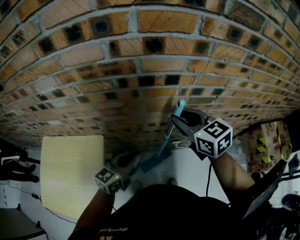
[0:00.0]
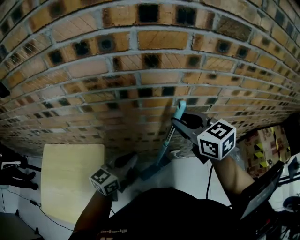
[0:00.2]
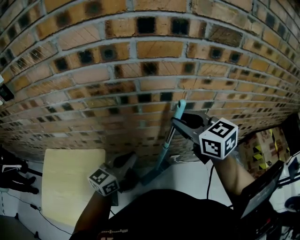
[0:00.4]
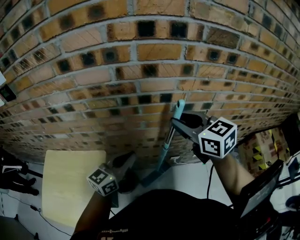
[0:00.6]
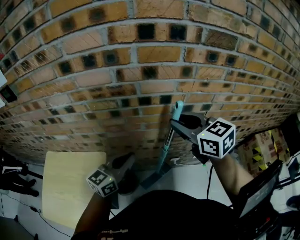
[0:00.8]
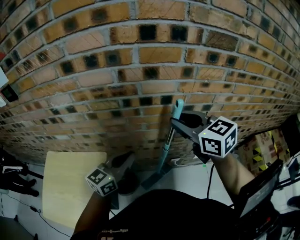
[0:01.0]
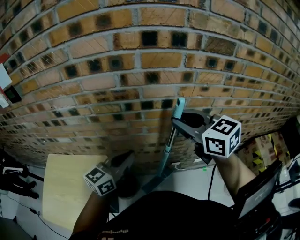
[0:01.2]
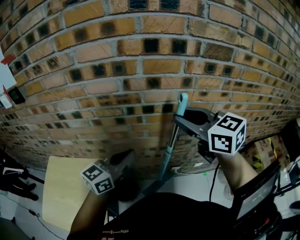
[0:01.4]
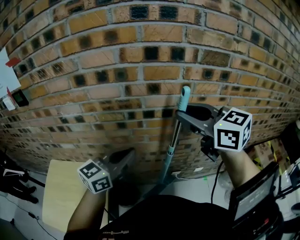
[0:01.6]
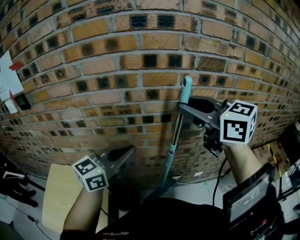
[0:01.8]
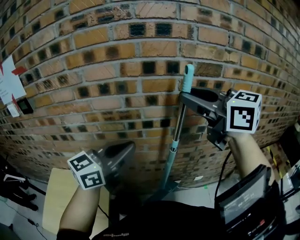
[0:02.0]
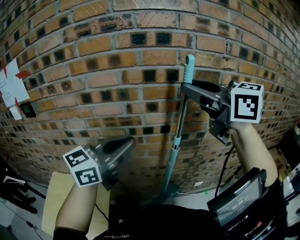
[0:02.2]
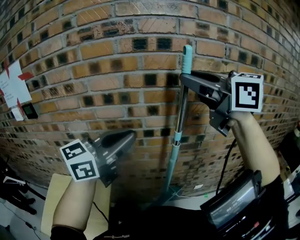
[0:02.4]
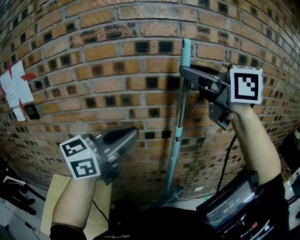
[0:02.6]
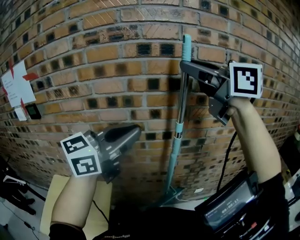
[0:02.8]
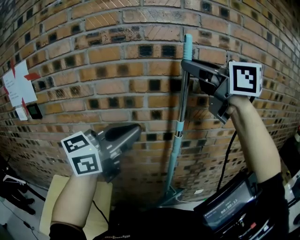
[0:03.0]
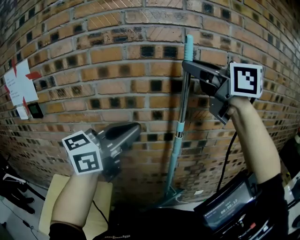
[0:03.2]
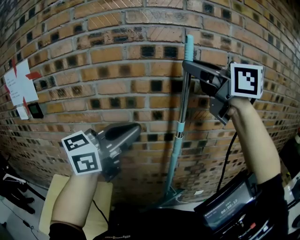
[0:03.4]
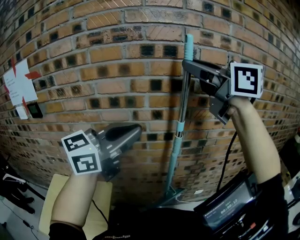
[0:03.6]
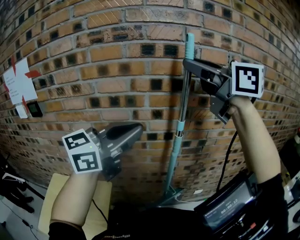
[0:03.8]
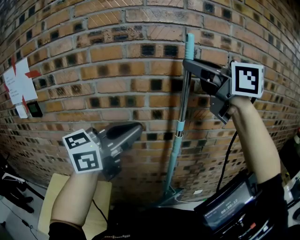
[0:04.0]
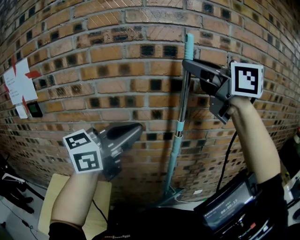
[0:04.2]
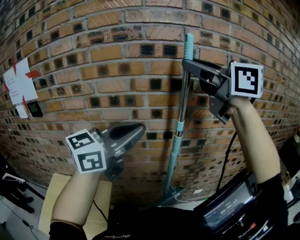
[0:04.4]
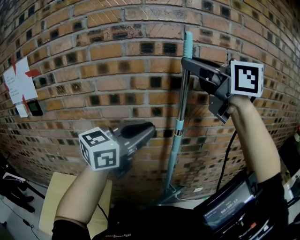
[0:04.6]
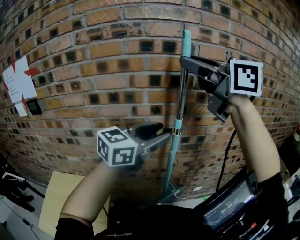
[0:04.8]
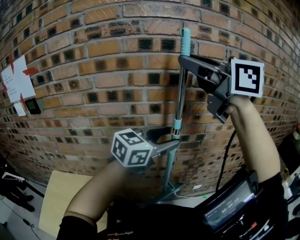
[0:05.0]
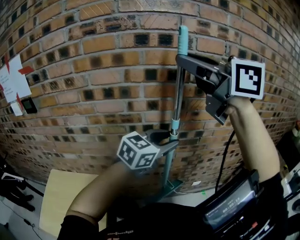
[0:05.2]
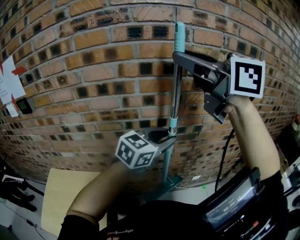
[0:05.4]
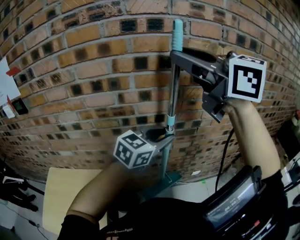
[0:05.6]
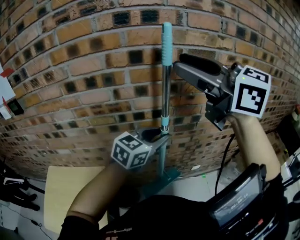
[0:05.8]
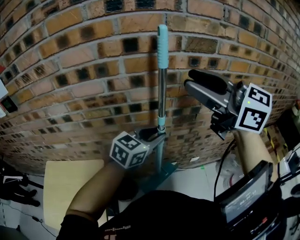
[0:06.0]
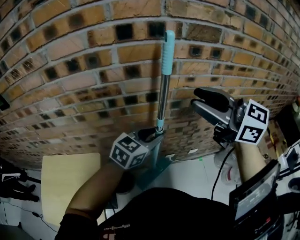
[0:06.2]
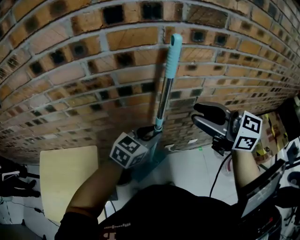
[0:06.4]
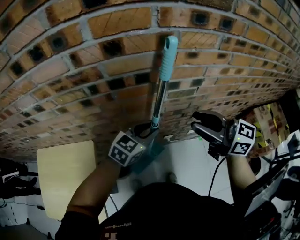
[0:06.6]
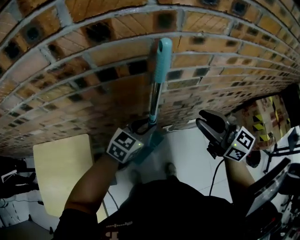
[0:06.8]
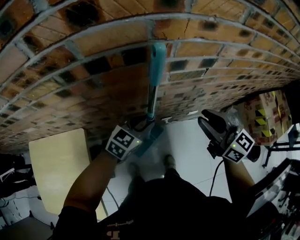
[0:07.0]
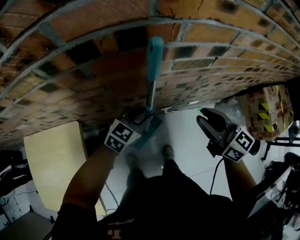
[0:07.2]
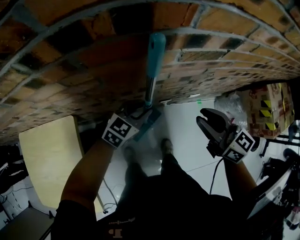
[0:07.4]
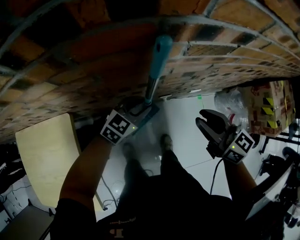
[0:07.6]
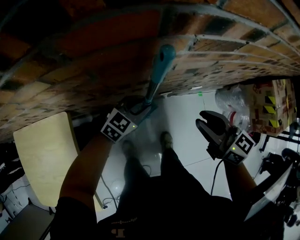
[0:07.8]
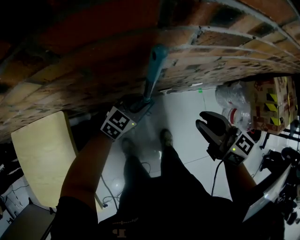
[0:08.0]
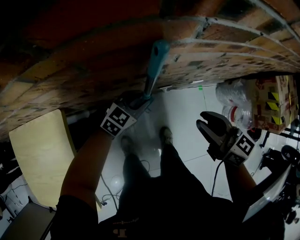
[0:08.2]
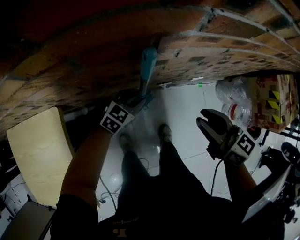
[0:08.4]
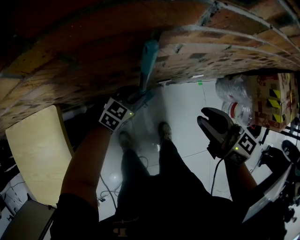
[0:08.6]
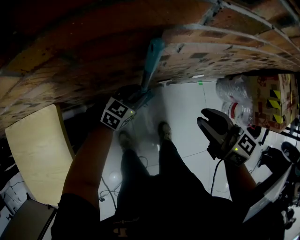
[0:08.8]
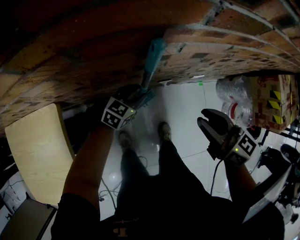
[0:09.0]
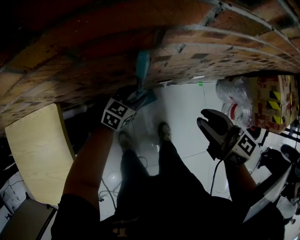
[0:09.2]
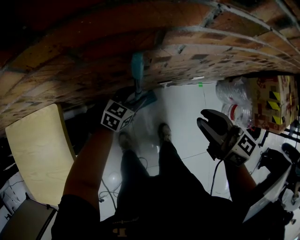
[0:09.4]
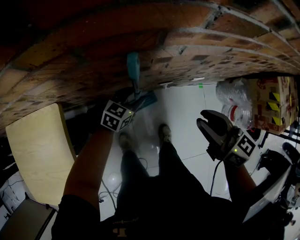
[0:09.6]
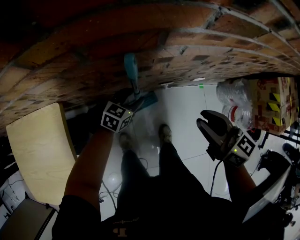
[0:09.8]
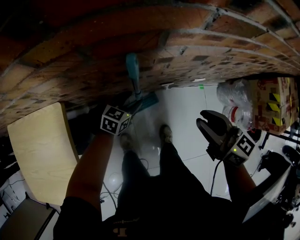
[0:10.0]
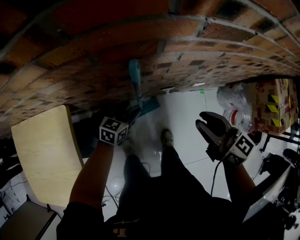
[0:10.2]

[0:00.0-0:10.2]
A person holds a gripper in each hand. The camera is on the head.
0:00.0 to 0:01.4: Both grippers move upward, approximately 15 cm.
0:01.4 to 0:03.0: The grippers both shift upward by roughly 25 cm.
0:03.0 to 0:04.4: Both grippers stay put.
0:04.4 to 0:05.8: The right gripper is displaced downward by some 10 cm. Meanwhile the left gripper moves downward and to the right, roughly 25 cm, turns by approximately 20 degrees, and opens up.
0:05.8 to 0:07.2: The grippers both shift downward by roughly 40 cm. The right gripper rotates some 30 degrees.
0:07.2 to 0:08.8: The left gripper shifts roughly 20 cm downward, while the right gripper is displaced downward by about 10 cm.
0:08.8 to 0:10.2: The left gripper heads to the left, covering roughly 5 cm.

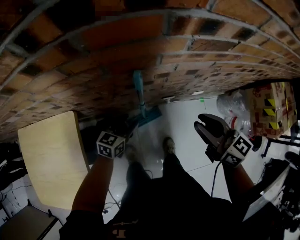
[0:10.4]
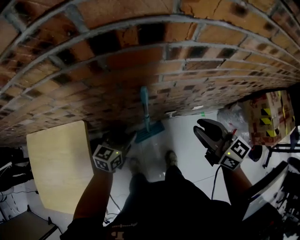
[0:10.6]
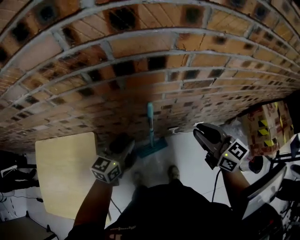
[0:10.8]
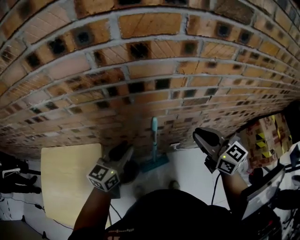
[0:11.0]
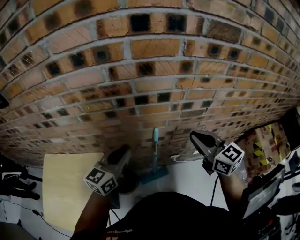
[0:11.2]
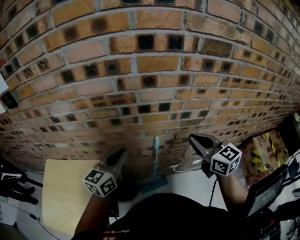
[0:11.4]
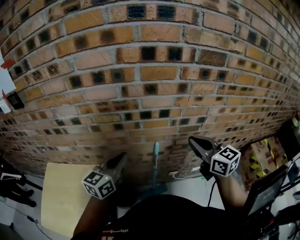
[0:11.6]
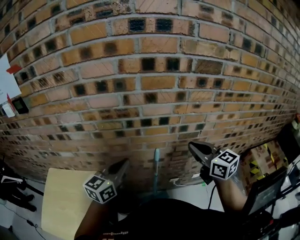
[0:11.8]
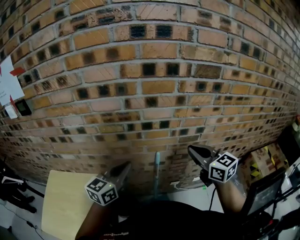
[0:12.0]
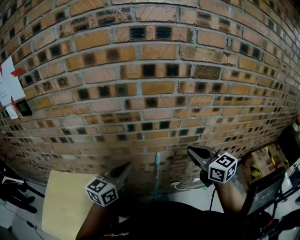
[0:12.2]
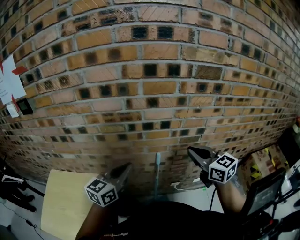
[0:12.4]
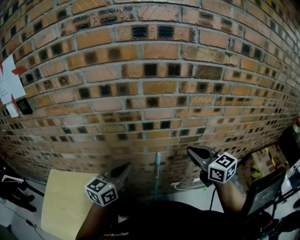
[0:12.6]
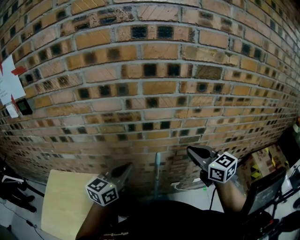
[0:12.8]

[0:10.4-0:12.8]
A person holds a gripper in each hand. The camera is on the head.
0:10.4 to 0:11.6: The right gripper goes approximately 25 cm upward, and closes its fingers. Meanwhile the left gripper shifts some 40 cm upward, swivels roughly 30 degrees, and closes its fingers.
0:11.6 to 0:12.8: The grippers stay close to where they were, moving slightly.

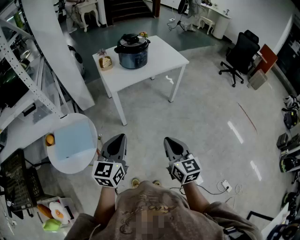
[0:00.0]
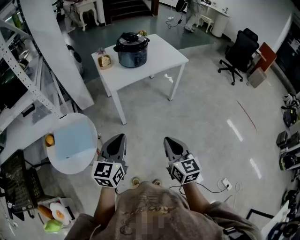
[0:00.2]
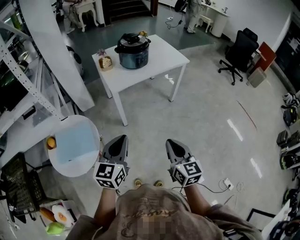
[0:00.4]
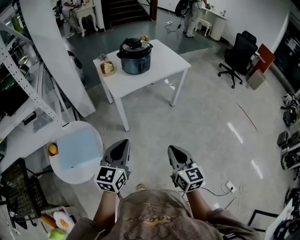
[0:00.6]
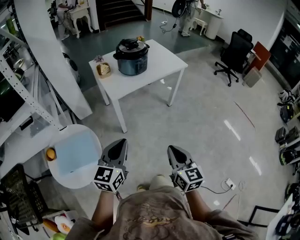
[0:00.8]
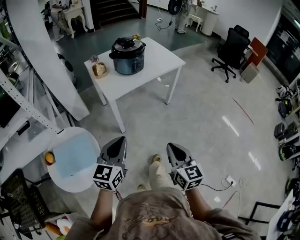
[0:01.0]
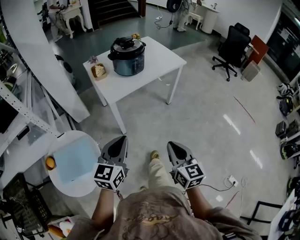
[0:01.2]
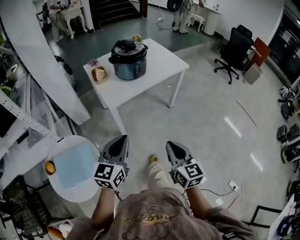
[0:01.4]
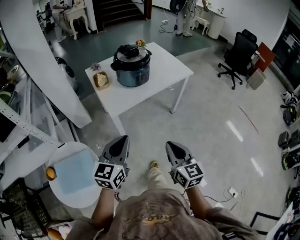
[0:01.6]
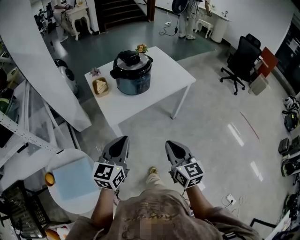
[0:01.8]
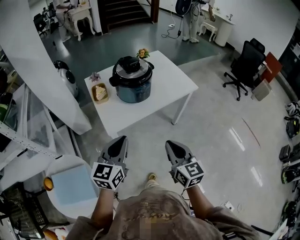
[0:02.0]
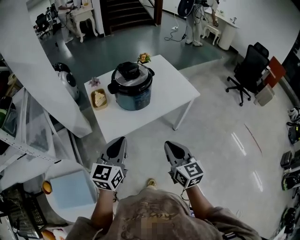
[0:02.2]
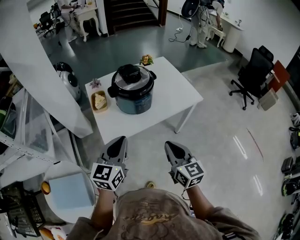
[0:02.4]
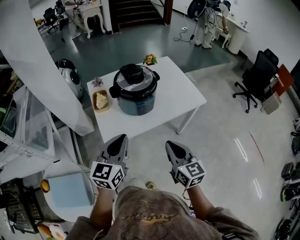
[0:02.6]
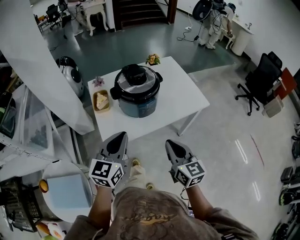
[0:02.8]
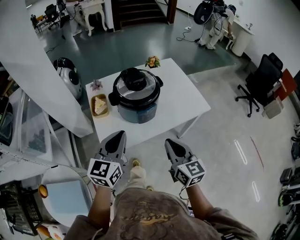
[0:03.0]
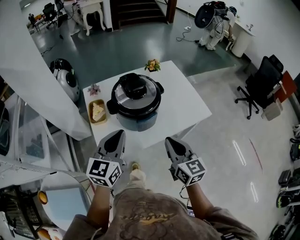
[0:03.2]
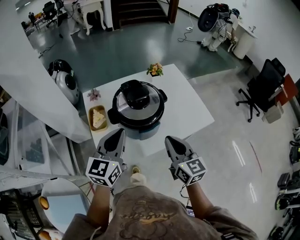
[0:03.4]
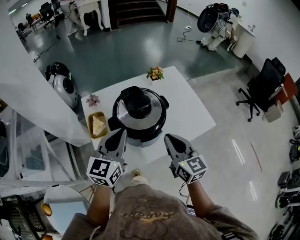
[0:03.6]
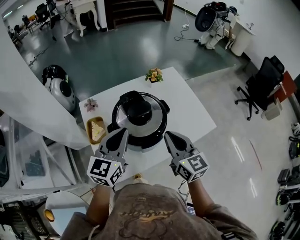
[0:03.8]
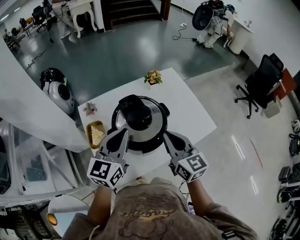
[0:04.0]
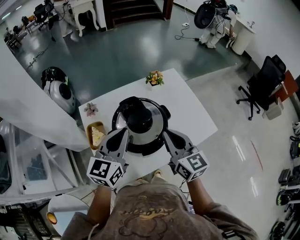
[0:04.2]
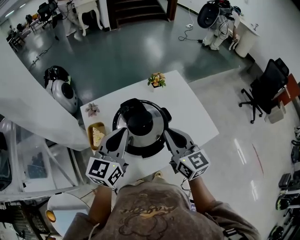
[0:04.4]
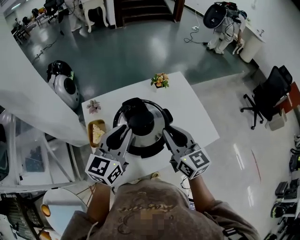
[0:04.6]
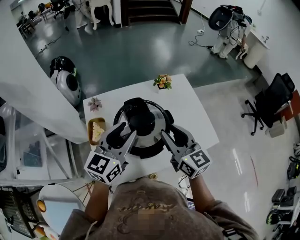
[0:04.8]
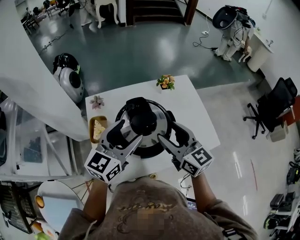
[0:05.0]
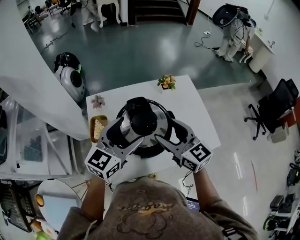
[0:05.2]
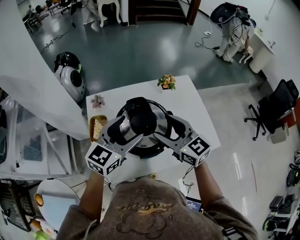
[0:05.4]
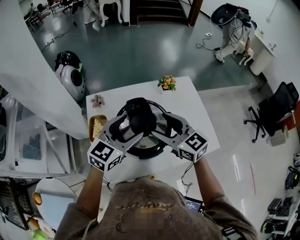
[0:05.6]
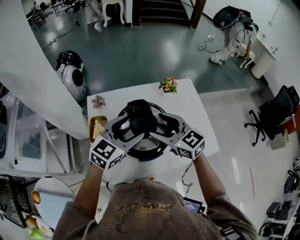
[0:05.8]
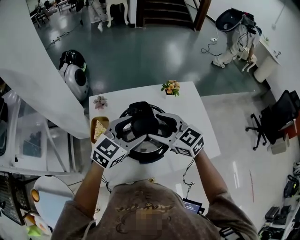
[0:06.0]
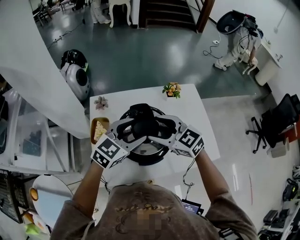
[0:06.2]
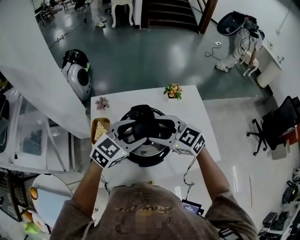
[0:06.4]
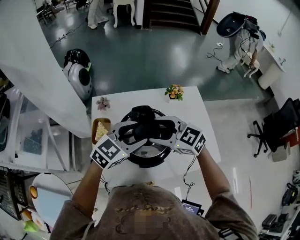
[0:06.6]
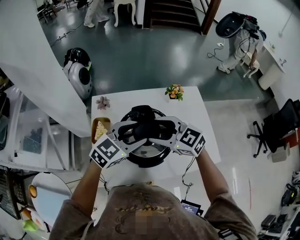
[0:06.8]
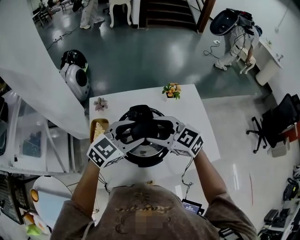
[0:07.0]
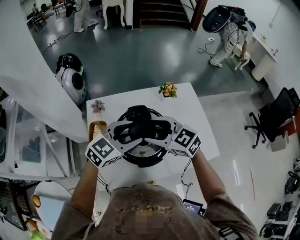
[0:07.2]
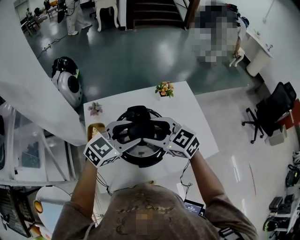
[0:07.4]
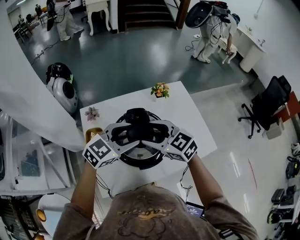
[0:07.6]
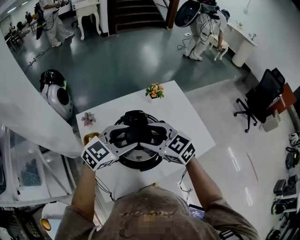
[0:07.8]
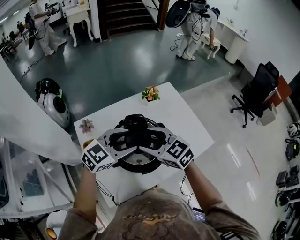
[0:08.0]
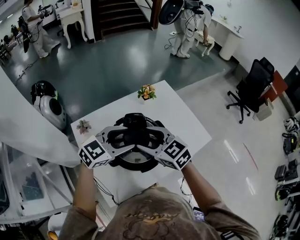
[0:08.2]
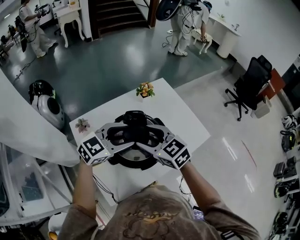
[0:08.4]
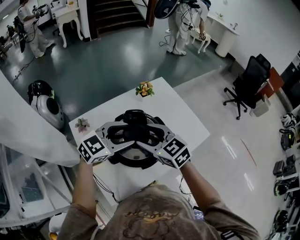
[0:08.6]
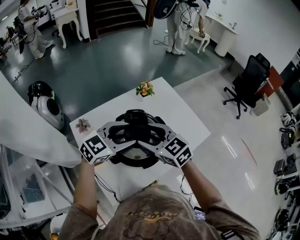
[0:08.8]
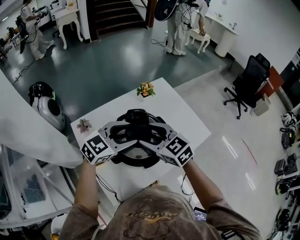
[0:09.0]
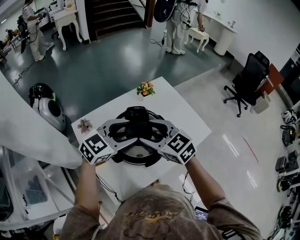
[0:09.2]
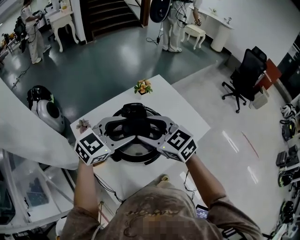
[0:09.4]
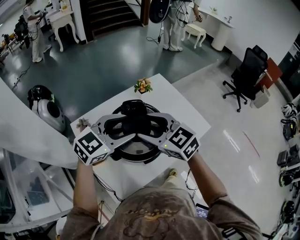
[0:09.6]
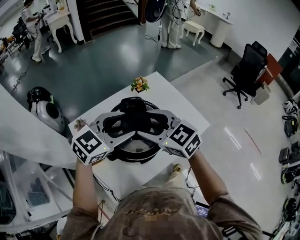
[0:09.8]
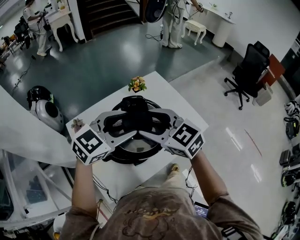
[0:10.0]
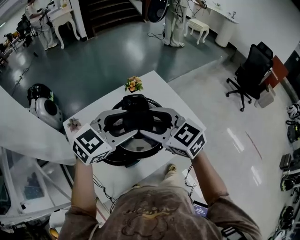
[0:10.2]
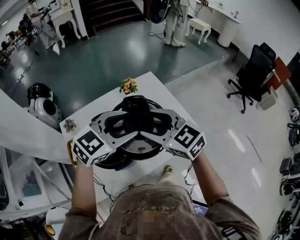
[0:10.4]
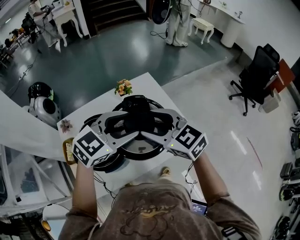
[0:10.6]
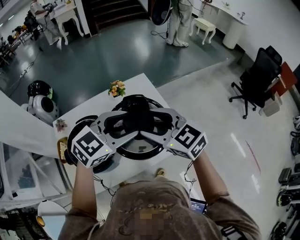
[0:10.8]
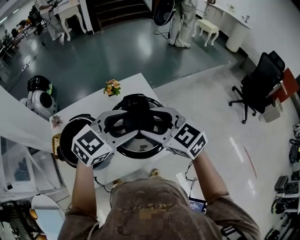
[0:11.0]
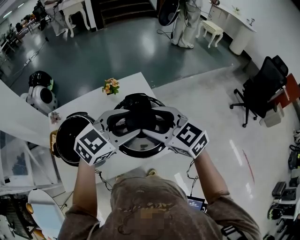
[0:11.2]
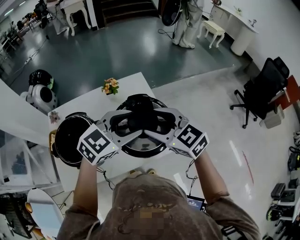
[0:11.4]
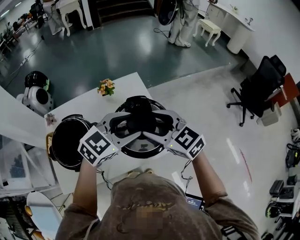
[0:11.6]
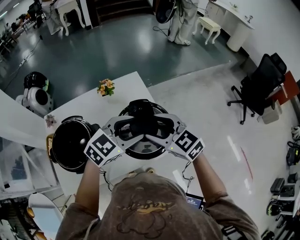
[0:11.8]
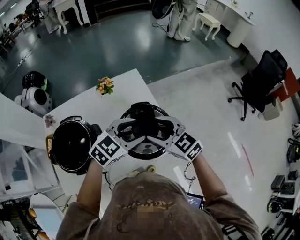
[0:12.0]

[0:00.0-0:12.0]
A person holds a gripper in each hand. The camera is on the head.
0:00.0 to 0:01.6: The two grippers go some 20 cm forward.
0:01.6 to 0:03.0: Both grippers move forward, some 30 cm.
0:03.0 to 0:04.4: The two grippers go roughly 25 cm forward.
0:04.4 to 0:06.0: The left gripper changes place by approximately 5 cm, swivels about 20 degrees, and opens; the right gripper goes about 10 cm forward and to the left, turns by roughly 40 degrees, and opens its fingers.
0:06.0 to 0:07.6: The grippers stay close to where they were, moving slightly.
0:07.6 to 0:09.0: The right gripper swivels some 20 degrees.
0:09.0 to 0:10.4: Both grippers travel together to the right and upward, some 15 cm.
0:10.4 to 0:12.0: The grippers both shift to the right and downward by approximately 25 cm.
